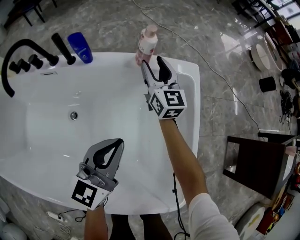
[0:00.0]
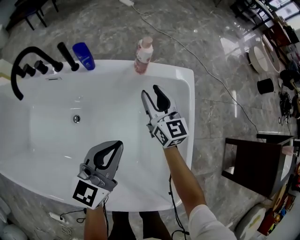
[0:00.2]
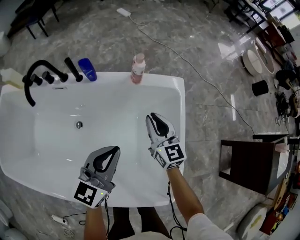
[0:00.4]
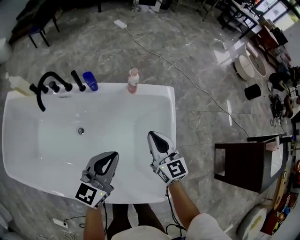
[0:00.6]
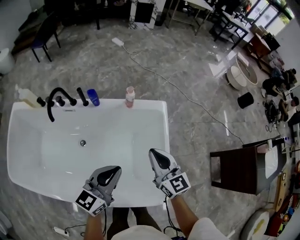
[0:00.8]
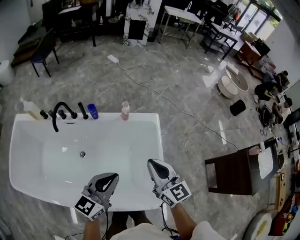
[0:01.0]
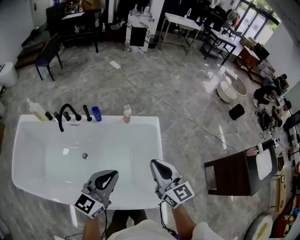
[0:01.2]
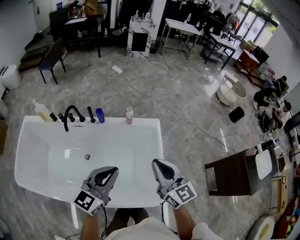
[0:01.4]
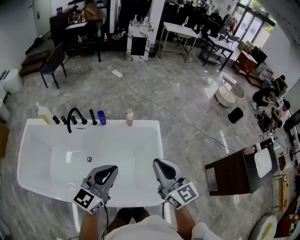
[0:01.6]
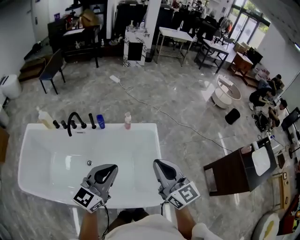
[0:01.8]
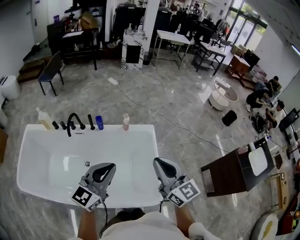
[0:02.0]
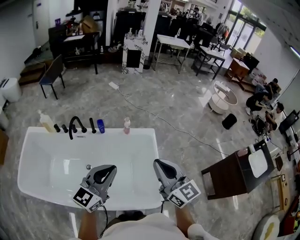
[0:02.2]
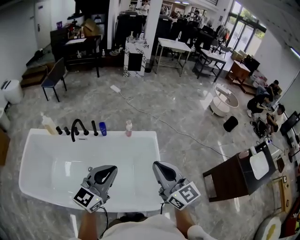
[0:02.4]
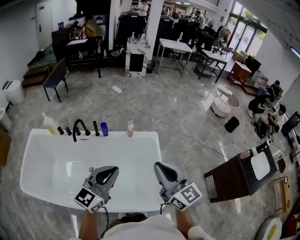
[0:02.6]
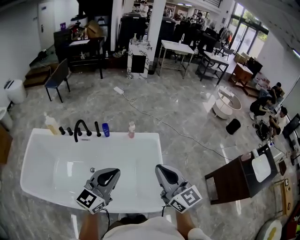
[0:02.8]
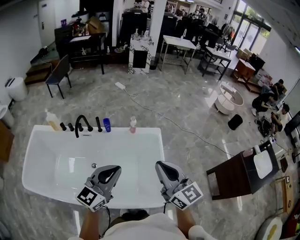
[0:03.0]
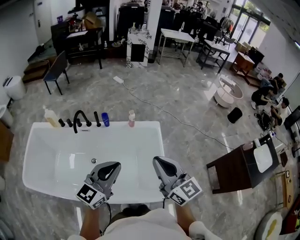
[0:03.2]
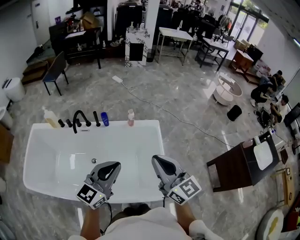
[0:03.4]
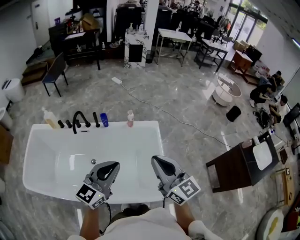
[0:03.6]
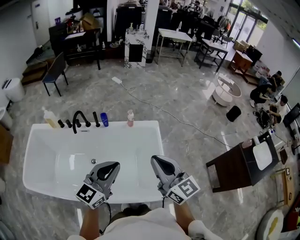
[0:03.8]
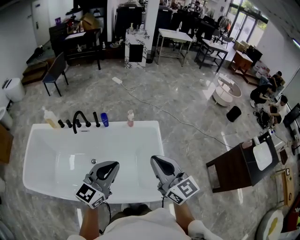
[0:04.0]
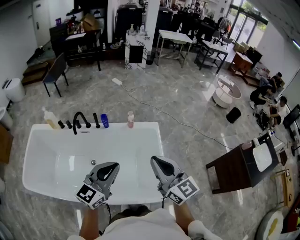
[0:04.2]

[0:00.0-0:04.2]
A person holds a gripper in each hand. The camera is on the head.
0:00.0 to 0:01.4: The grippers both shift upward and backward by about 50 cm. The right gripper closes.
0:01.4 to 0:02.8: Both grippers travel together upward and backward, roughly 10 cm.
0:02.8 to 0:04.2: There are only small adjustments of the grippers.

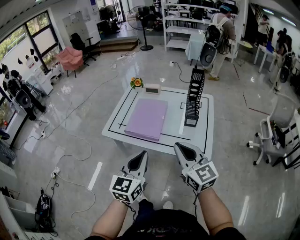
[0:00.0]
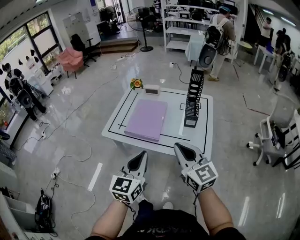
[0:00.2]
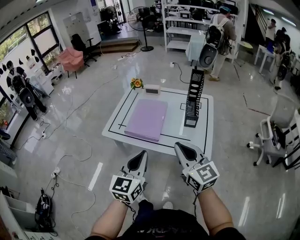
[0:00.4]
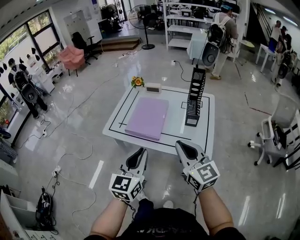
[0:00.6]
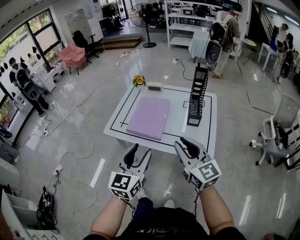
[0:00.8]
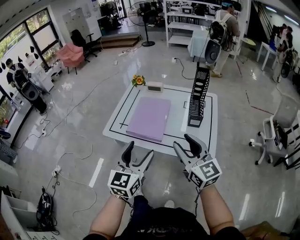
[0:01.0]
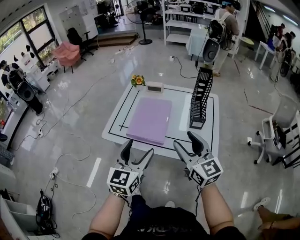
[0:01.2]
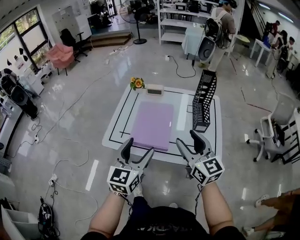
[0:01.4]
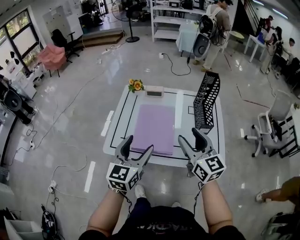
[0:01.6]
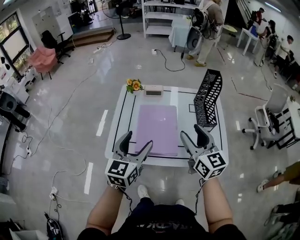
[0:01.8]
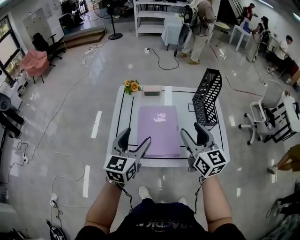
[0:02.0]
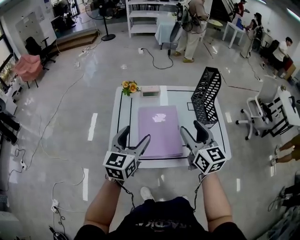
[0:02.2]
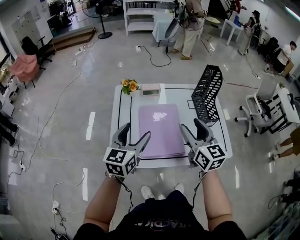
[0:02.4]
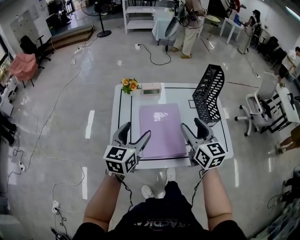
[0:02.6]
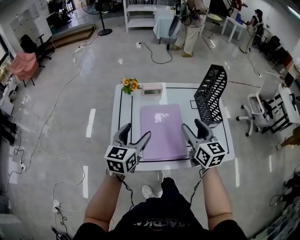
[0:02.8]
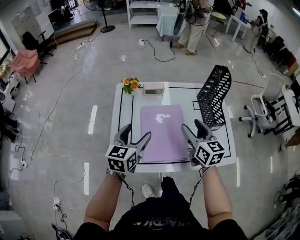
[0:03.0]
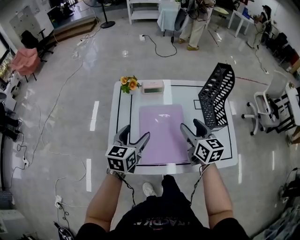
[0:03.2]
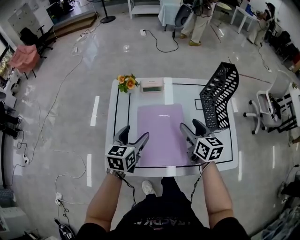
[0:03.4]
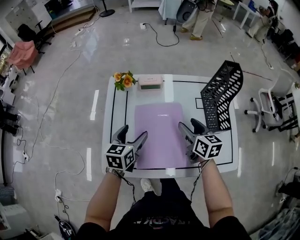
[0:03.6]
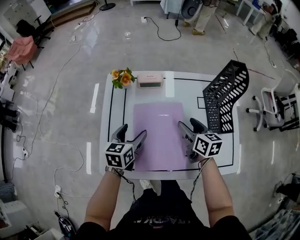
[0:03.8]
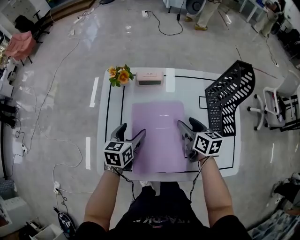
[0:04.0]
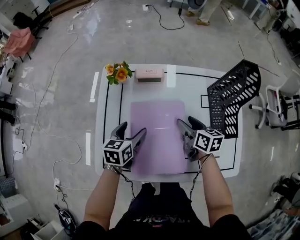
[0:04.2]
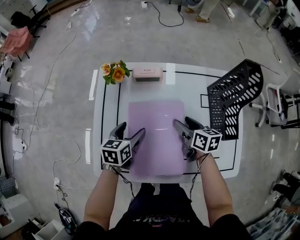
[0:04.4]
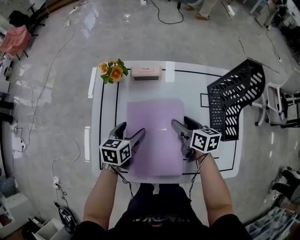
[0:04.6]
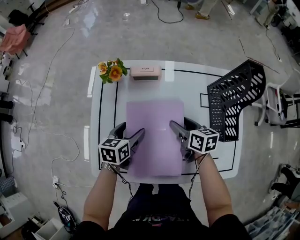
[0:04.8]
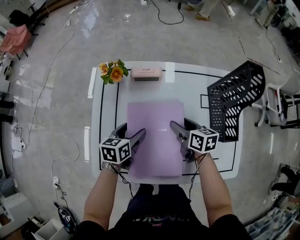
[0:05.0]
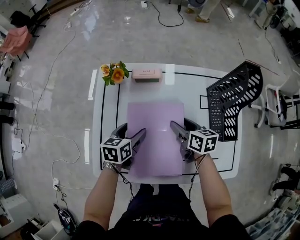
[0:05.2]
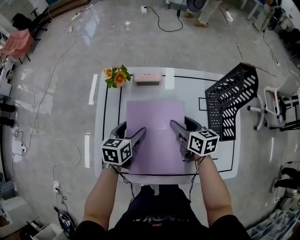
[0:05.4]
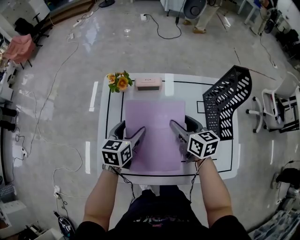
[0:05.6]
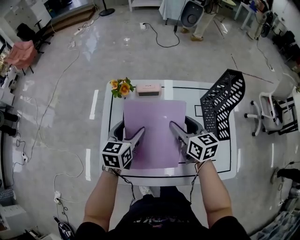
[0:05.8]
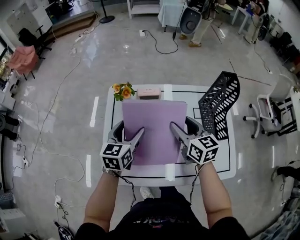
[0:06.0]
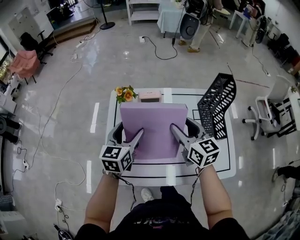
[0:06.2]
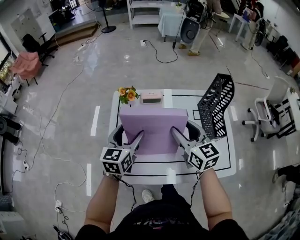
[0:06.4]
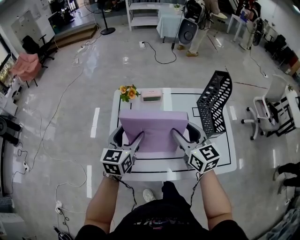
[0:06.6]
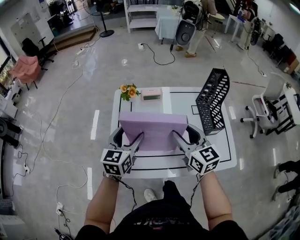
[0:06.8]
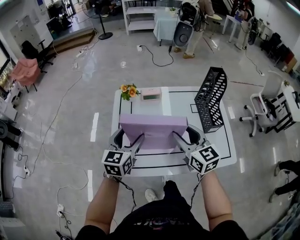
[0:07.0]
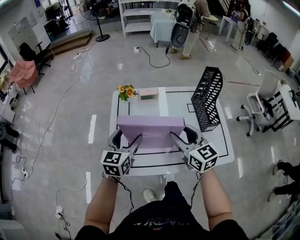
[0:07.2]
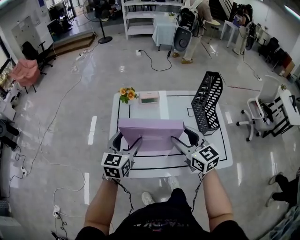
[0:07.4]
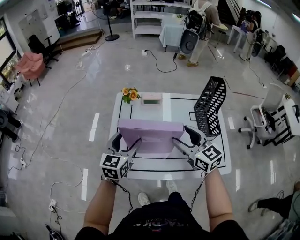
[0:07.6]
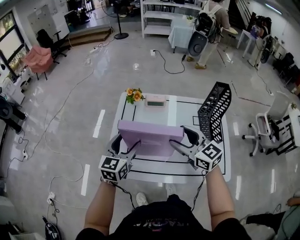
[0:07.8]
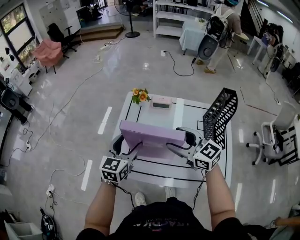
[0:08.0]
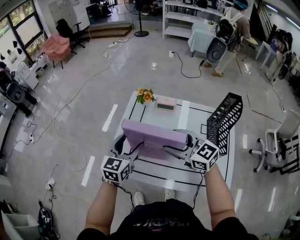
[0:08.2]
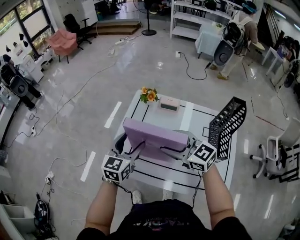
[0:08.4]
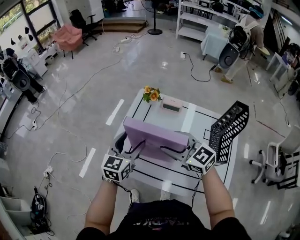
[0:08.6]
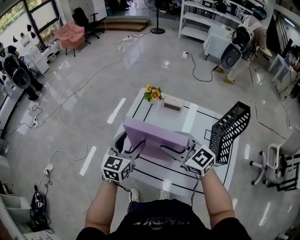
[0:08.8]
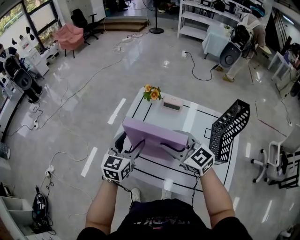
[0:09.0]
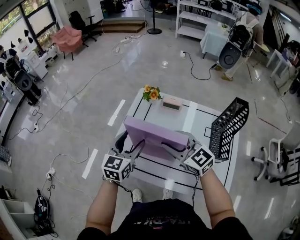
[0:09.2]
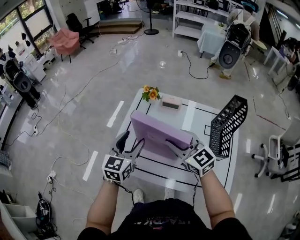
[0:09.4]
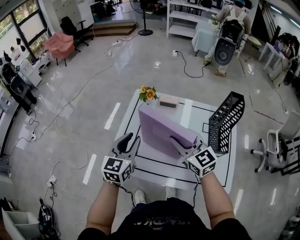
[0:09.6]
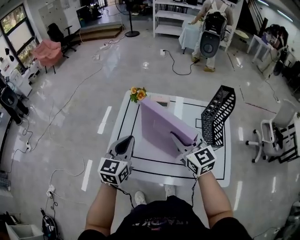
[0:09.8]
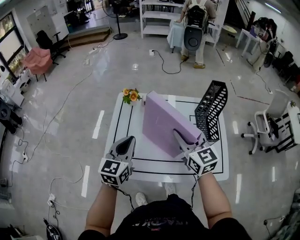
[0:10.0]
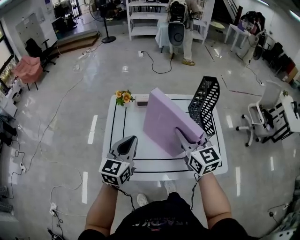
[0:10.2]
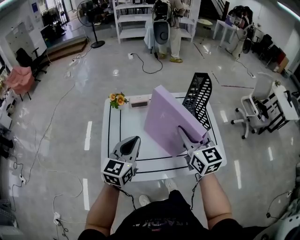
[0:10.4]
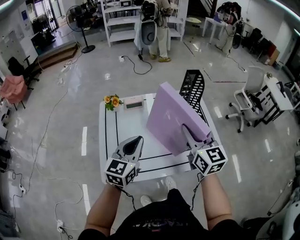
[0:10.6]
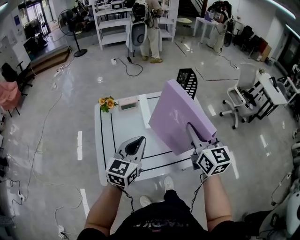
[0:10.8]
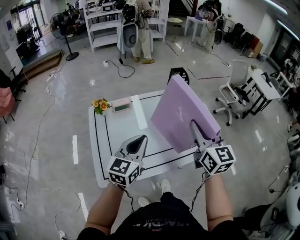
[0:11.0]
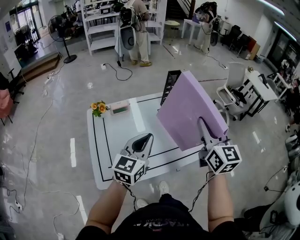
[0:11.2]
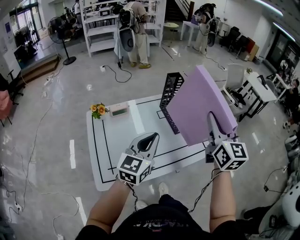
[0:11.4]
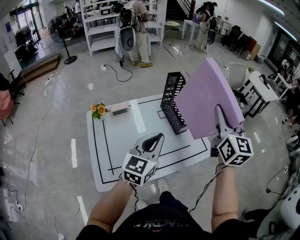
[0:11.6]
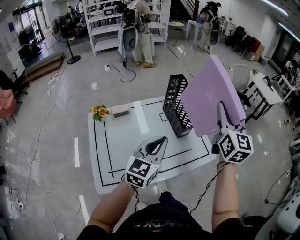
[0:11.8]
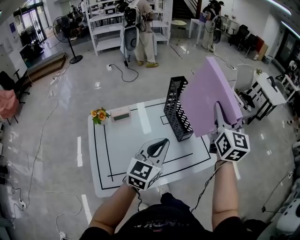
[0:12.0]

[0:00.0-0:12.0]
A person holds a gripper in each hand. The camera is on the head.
0:00.0 to 0:01.6: The left gripper goes roughly 20 cm forward and to the left, and opens, while the right gripper is displaced forward by approximately 20 cm, and opens its fingers.
0:01.6 to 0:03.0: The right gripper goes some 15 cm forward, downward and to the left, and changes its angle by about 20 degrees; the left gripper travels forward, to the left and downward by roughly 20 cm.
0:03.0 to 0:04.4: The two grippers go approximately 20 cm downward and forward. The left gripper swivels roughly 20 degrees; the right gripper turns by roughly 30 degrees.
0:04.4 to 0:06.0: Both grippers move upward, approximately 15 cm. The right gripper turns by roughly 30 degrees. Meanwhile the left gripper swivels approximately 20 degrees.
0:06.0 to 0:07.6: The right gripper is displaced backward and upward by approximately 15 cm, and turns by roughly 20 degrees; the left gripper shifts approximately 10 cm backward.
0:07.6 to 0:09.0: The right gripper shifts by about 10 cm, and changes its angle by roughly 30 degrees.
0:09.0 to 0:10.4: The left gripper shifts by about 10 cm, swivels some 30 degrees, and closes. Meanwhile the right gripper shifts by roughly 15 cm, and rotates about 60 degrees.
0:10.4 to 0:12.0: The left gripper moves some 20 cm, and changes its angle by some 20 degrees; the right gripper shifts by approximately 25 cm, and turns by approximately 40 degrees.

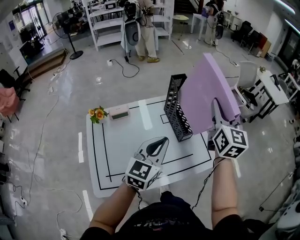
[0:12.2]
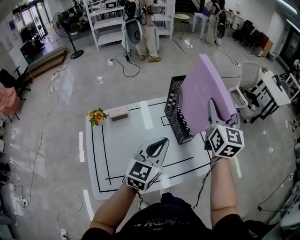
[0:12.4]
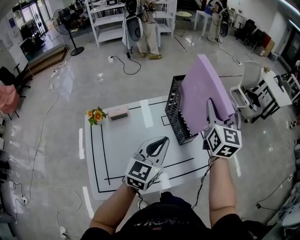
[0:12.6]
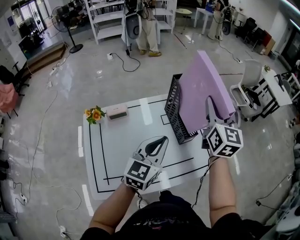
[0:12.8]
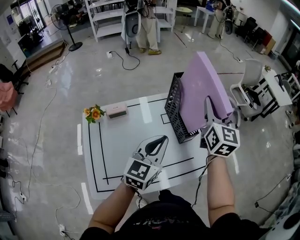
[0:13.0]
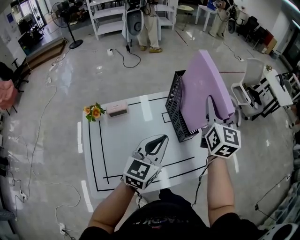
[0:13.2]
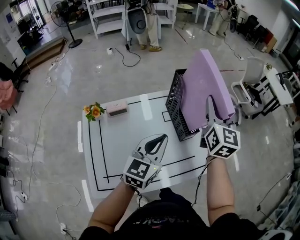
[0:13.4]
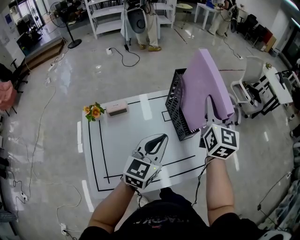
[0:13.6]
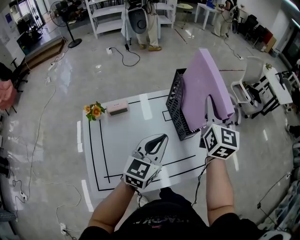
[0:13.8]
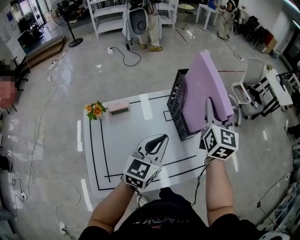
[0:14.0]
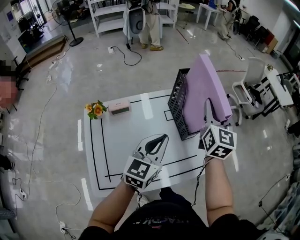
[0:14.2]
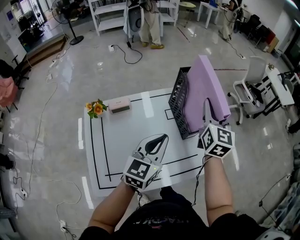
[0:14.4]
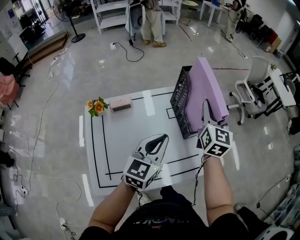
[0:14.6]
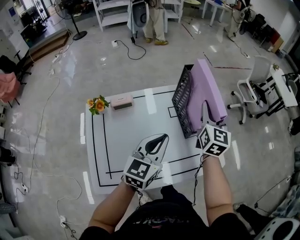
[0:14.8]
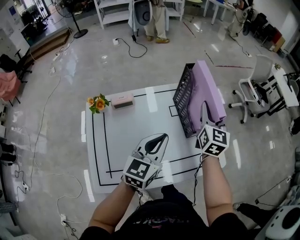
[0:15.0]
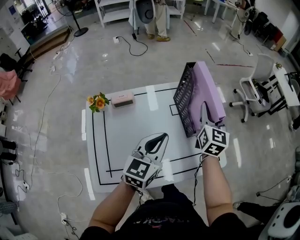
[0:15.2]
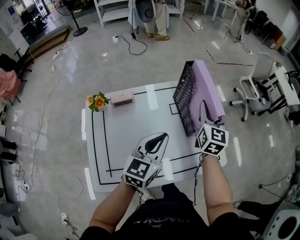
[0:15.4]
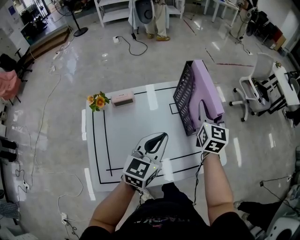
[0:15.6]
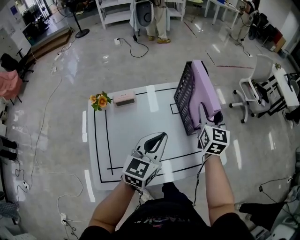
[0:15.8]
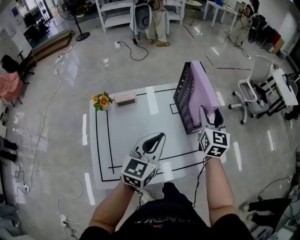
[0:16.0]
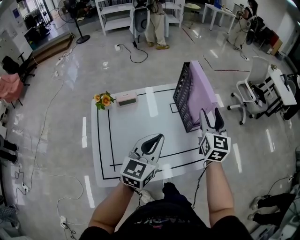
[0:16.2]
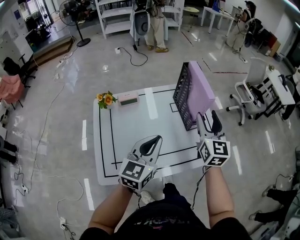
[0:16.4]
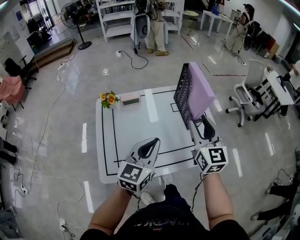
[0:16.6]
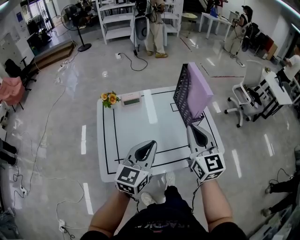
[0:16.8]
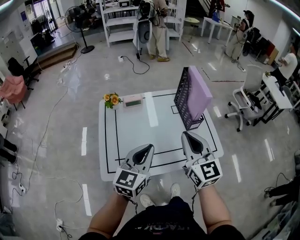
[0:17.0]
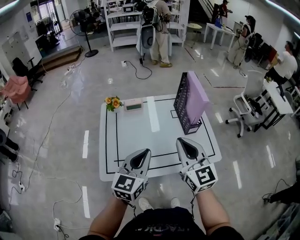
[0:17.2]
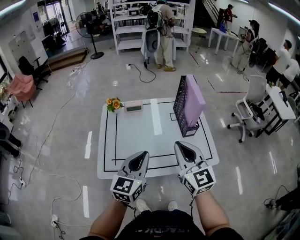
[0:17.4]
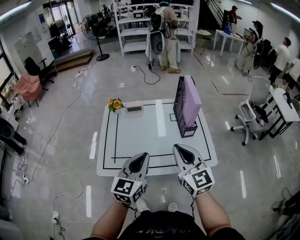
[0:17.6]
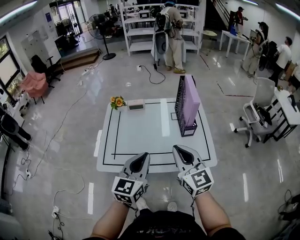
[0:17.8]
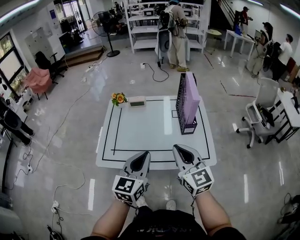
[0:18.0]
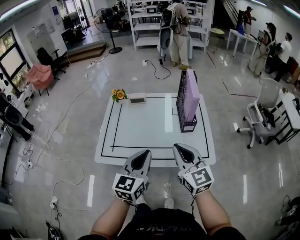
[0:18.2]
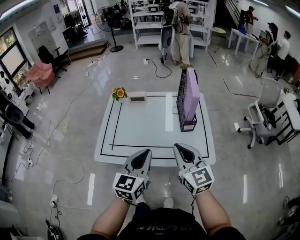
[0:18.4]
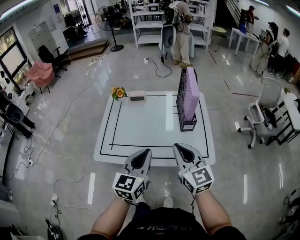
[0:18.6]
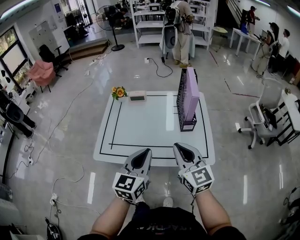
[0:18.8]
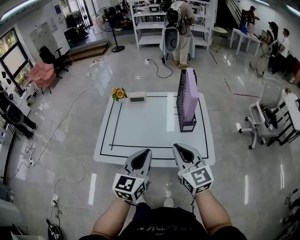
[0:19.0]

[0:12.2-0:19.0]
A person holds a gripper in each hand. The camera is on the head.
0:12.2 to 0:13.6: The left gripper ends up roughly 5 cm from where it was. Meanwhile the right gripper goes some 5 cm forward.
0:13.6 to 0:15.0: The right gripper travels downward by roughly 10 cm.
0:15.0 to 0:16.2: The grippers both shift backward by some 5 cm.
0:16.2 to 0:17.6: The right gripper changes place by approximately 25 cm, turns by some 40 degrees, and closes its fingers, while the left gripper shifts by approximately 15 cm.
0:17.6 to 0:19.0: The two grippers go about 5 cm to the right.
